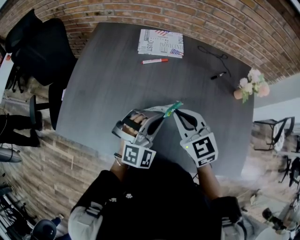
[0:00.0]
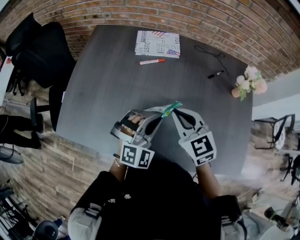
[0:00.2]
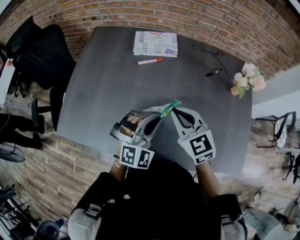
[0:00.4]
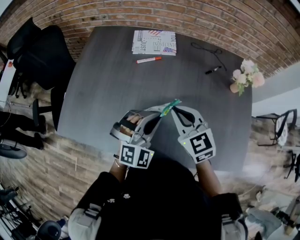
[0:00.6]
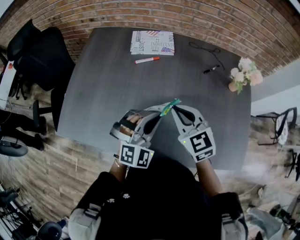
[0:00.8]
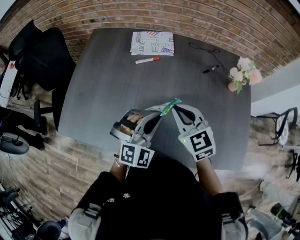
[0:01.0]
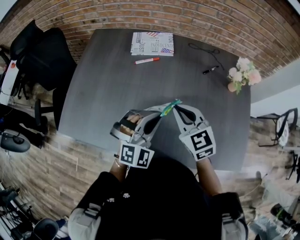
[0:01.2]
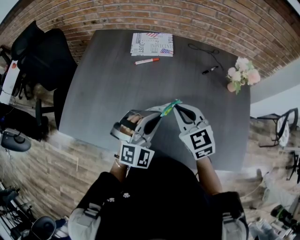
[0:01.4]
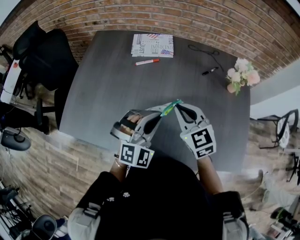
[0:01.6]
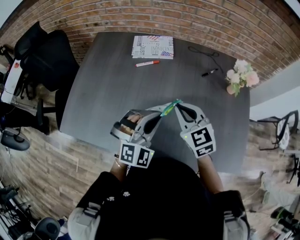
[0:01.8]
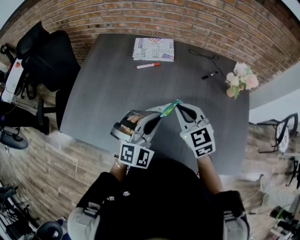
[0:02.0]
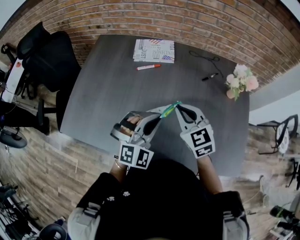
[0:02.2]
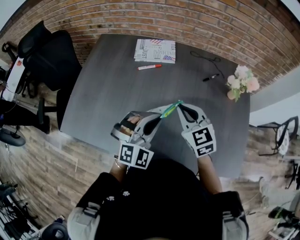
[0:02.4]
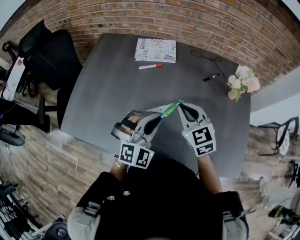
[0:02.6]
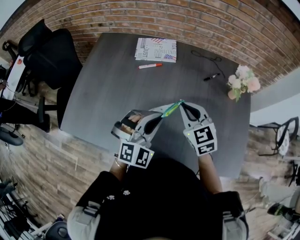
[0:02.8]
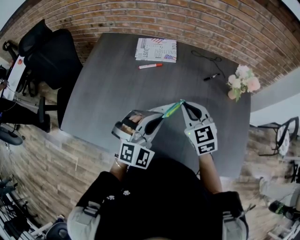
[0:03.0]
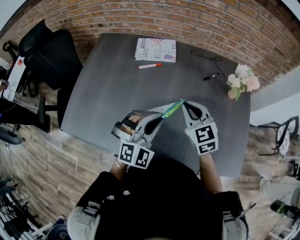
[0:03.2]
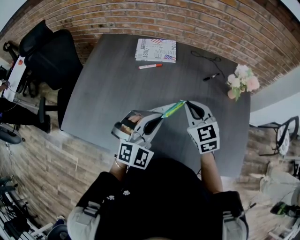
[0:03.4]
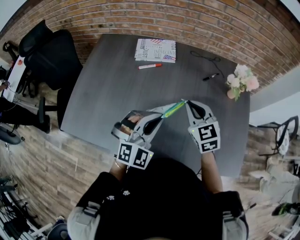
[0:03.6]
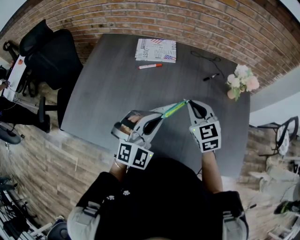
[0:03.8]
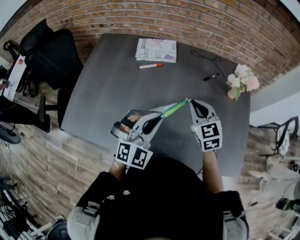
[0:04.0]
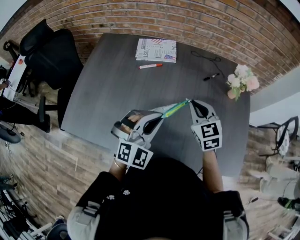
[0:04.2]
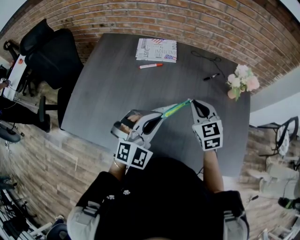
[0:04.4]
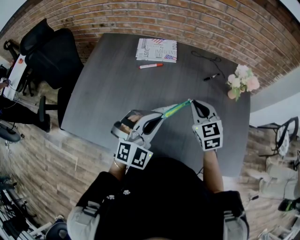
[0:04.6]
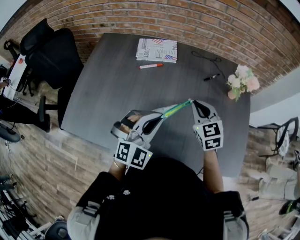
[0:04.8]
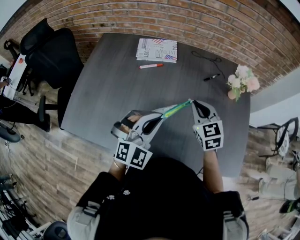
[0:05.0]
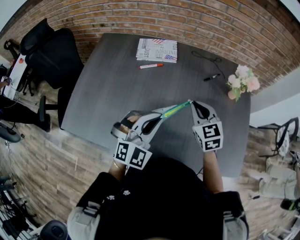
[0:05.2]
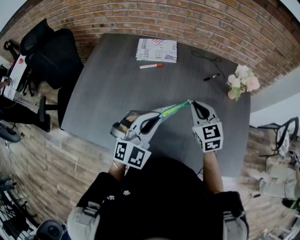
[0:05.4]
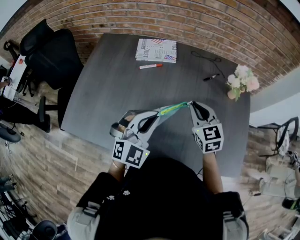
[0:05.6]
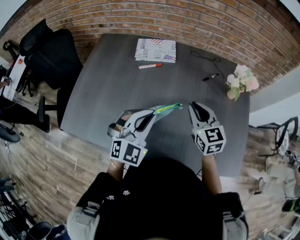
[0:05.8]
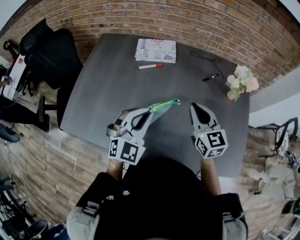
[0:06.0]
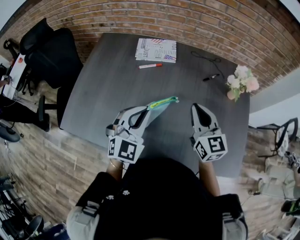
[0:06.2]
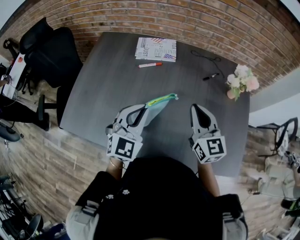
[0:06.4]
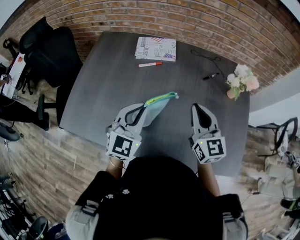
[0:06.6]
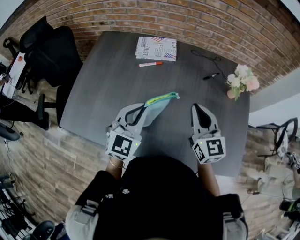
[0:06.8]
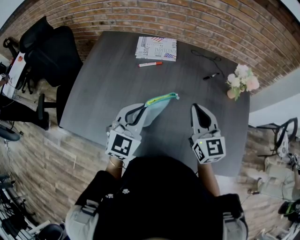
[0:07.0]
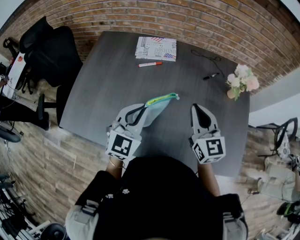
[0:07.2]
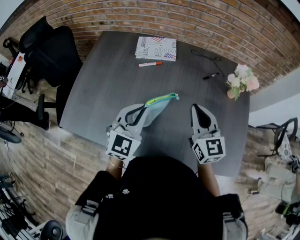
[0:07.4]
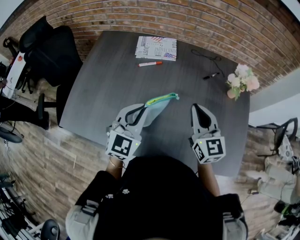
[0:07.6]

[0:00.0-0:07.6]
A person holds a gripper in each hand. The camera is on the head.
0:00.0 to 0:01.6: The right gripper goes approximately 5 cm to the right, while the left gripper ends up roughly 5 cm from where it was.
0:01.6 to 0:03.0: The grippers move only a little.
0:03.0 to 0:06.0: There are only small adjustments of the grippers.
0:06.0 to 0:07.6: The grippers move only a little.

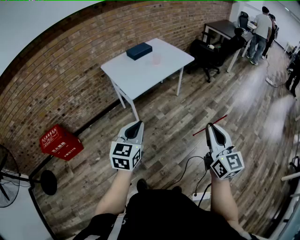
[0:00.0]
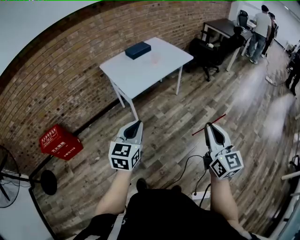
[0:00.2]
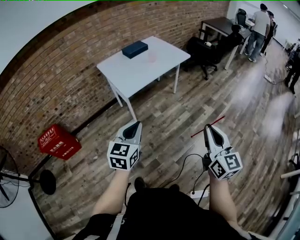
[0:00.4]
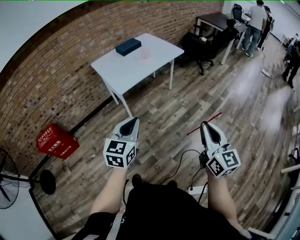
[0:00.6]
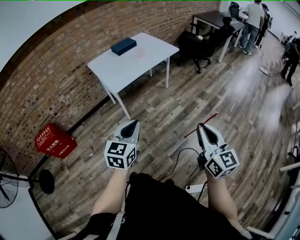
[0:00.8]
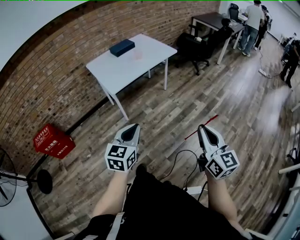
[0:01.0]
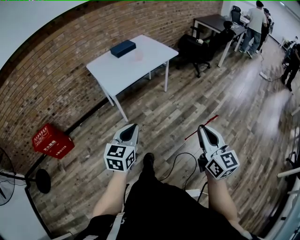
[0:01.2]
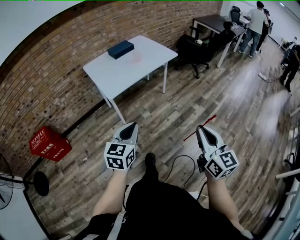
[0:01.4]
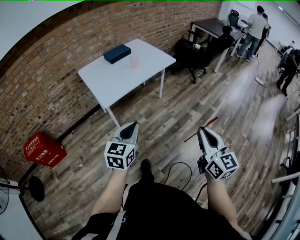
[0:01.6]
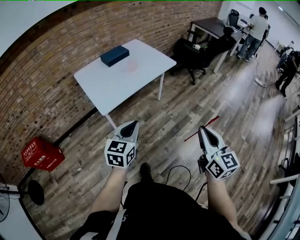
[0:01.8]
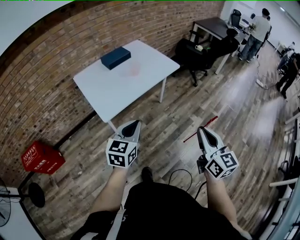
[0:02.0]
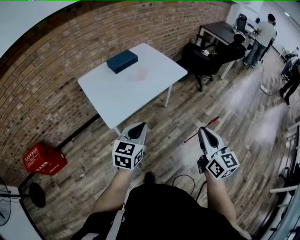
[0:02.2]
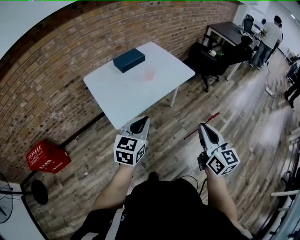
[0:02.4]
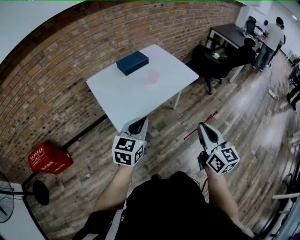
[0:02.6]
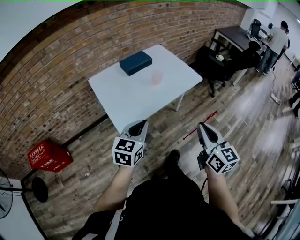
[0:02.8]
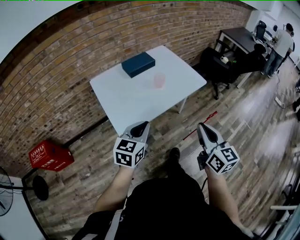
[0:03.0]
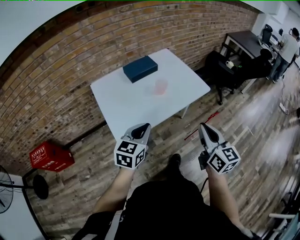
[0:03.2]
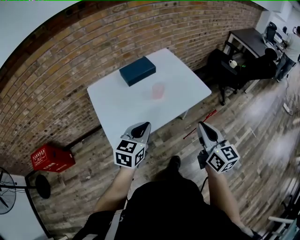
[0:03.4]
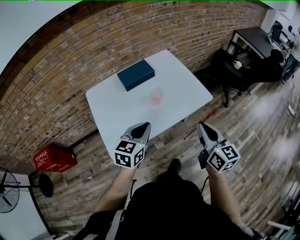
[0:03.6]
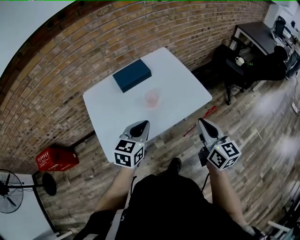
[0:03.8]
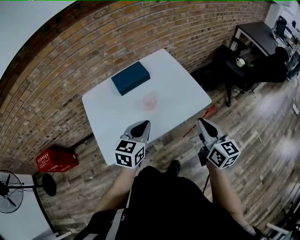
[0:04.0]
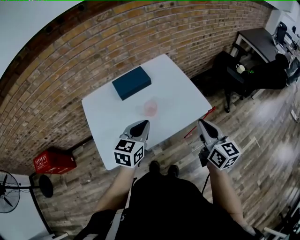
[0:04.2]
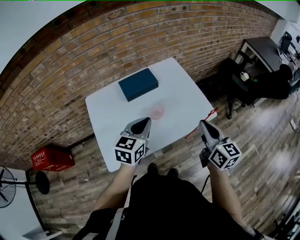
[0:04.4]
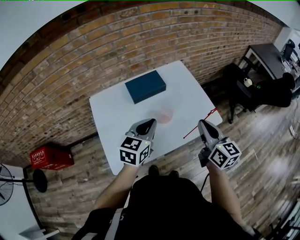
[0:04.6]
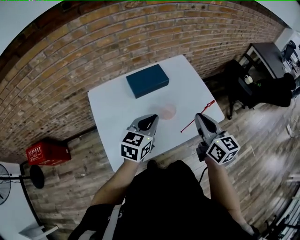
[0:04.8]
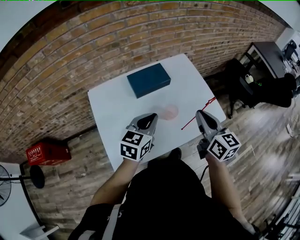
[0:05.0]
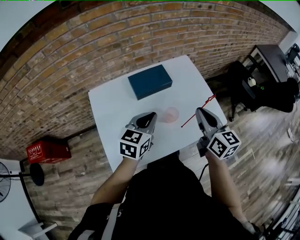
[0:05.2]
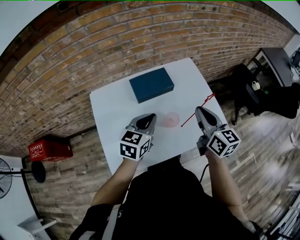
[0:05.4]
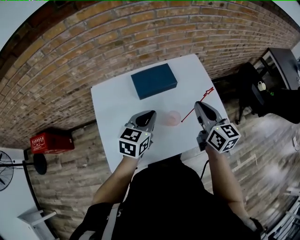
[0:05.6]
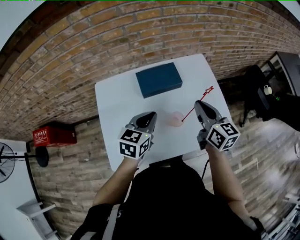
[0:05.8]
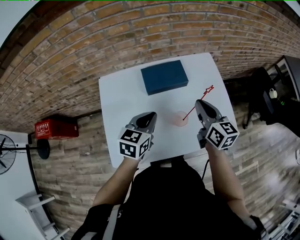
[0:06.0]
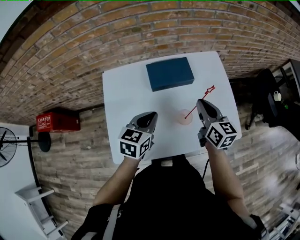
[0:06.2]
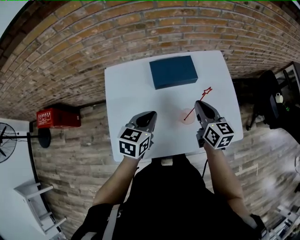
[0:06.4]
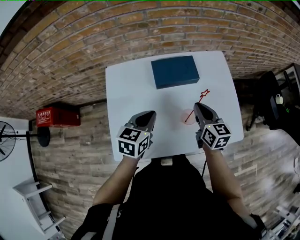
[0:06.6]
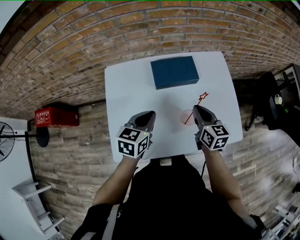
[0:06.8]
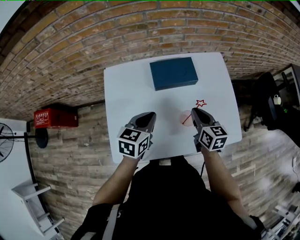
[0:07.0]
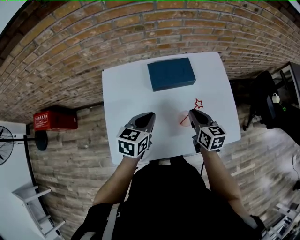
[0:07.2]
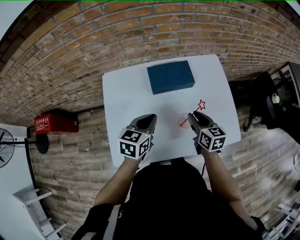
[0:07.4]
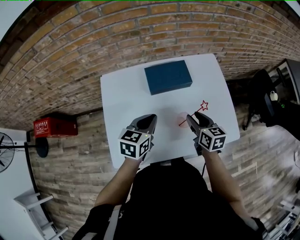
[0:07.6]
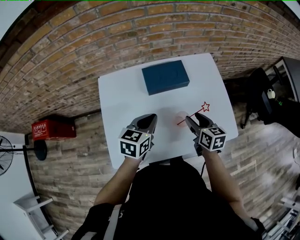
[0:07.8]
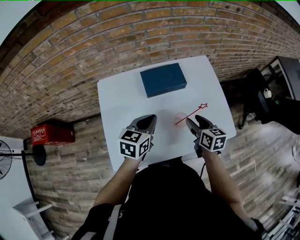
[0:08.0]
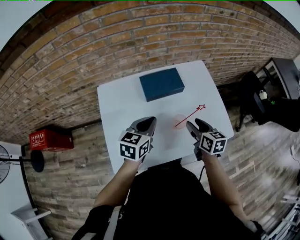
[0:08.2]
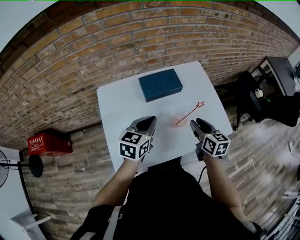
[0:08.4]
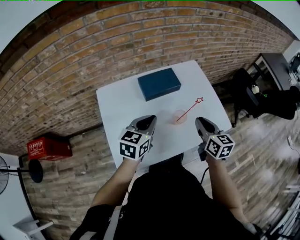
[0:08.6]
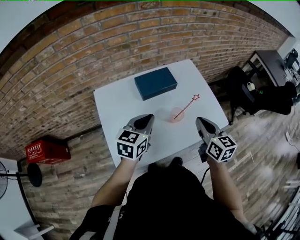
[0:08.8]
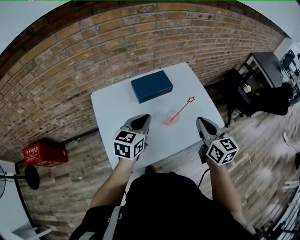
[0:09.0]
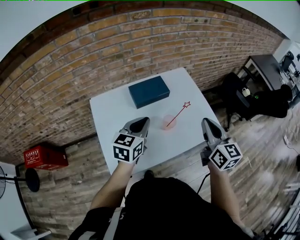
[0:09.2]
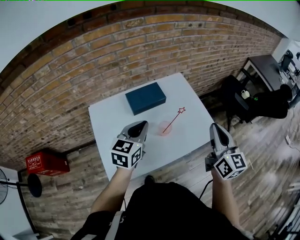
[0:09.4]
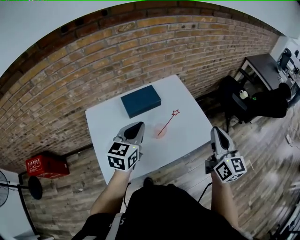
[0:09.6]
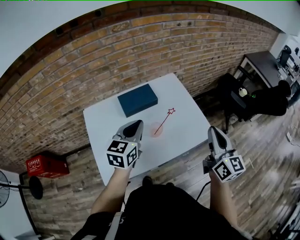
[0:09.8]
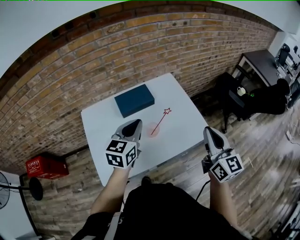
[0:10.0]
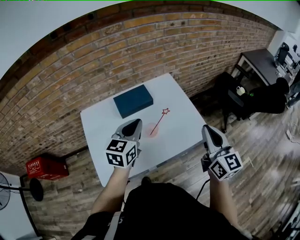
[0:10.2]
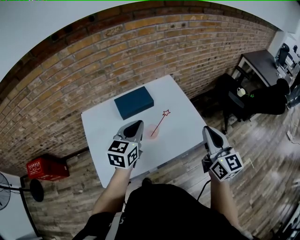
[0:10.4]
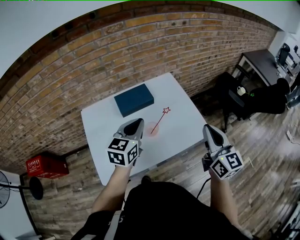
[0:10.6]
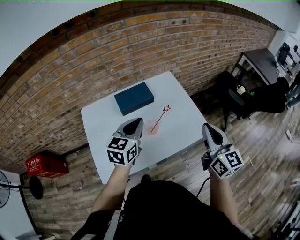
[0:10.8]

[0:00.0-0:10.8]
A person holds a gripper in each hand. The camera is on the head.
0:00.0 to 0:01.6: The grippers both shift to the right and forward by roughly 15 cm.
0:01.6 to 0:03.0: The right gripper moves forward and to the left, about 35 cm. Meanwhile the left gripper shifts approximately 30 cm forward.
0:03.0 to 0:04.6: The two grippers go some 30 cm forward.
0:04.6 to 0:06.2: The right gripper shifts about 20 cm forward, downward and to the left. The left gripper heads downward, forward and to the left, covering approximately 15 cm.
0:06.2 to 0:07.8: The right gripper is displaced downward by some 10 cm, and opens up.
0:07.8 to 0:09.2: The left gripper moves upward, approximately 10 cm, while the right gripper heads upward and backward, covering some 25 cm, swivels some 30 degrees, and closes its fingers.
0:09.2 to 0:10.8: Both grippers travel together to the right, approximately 10 cm.

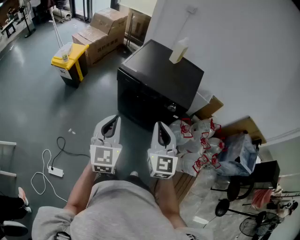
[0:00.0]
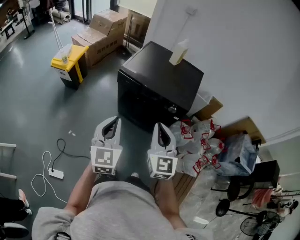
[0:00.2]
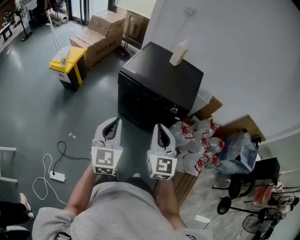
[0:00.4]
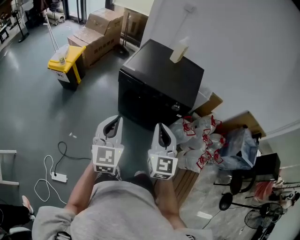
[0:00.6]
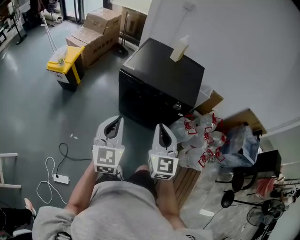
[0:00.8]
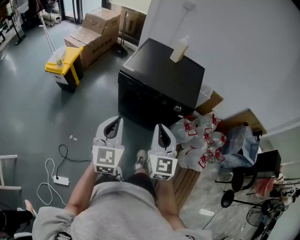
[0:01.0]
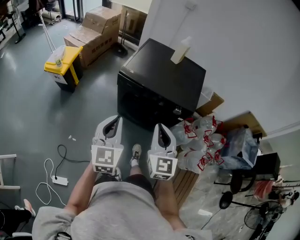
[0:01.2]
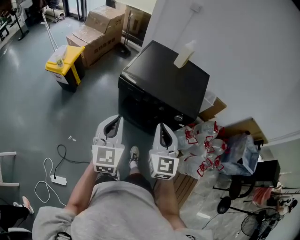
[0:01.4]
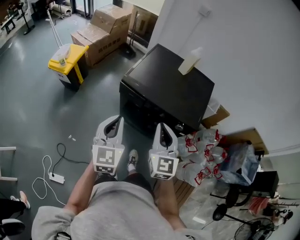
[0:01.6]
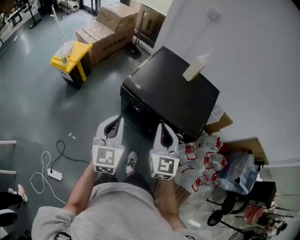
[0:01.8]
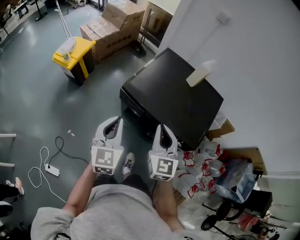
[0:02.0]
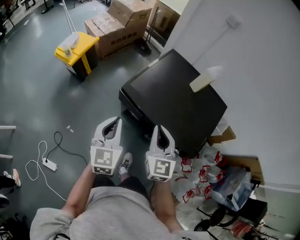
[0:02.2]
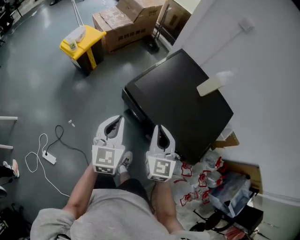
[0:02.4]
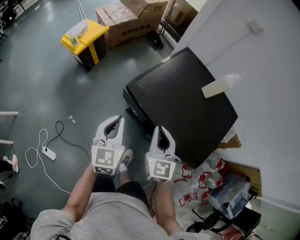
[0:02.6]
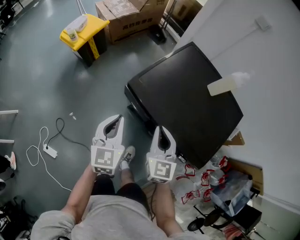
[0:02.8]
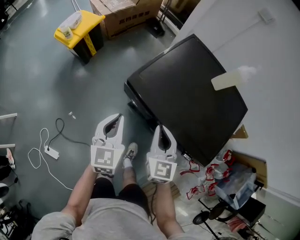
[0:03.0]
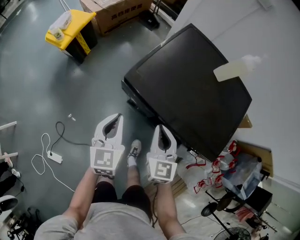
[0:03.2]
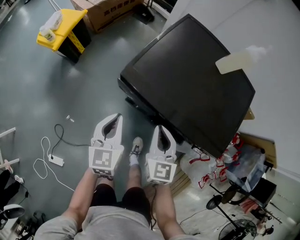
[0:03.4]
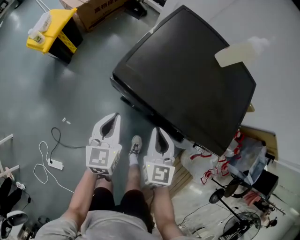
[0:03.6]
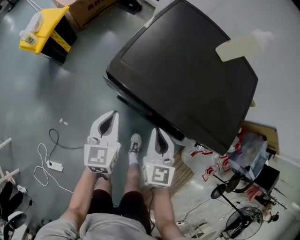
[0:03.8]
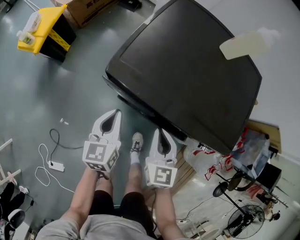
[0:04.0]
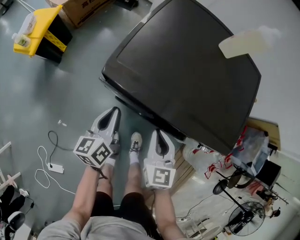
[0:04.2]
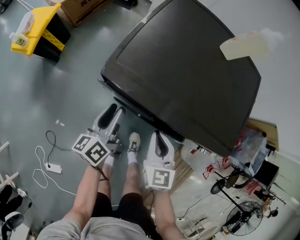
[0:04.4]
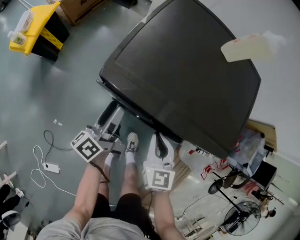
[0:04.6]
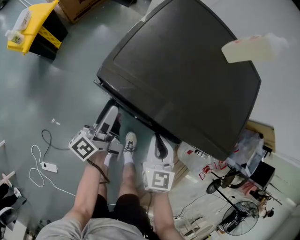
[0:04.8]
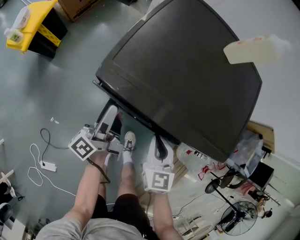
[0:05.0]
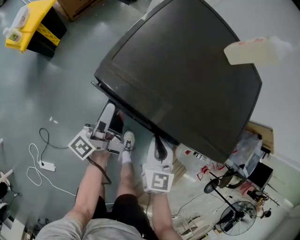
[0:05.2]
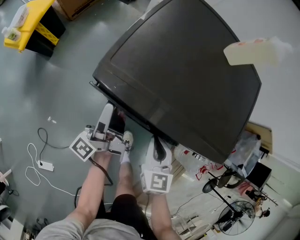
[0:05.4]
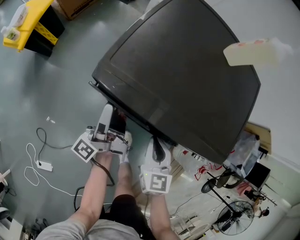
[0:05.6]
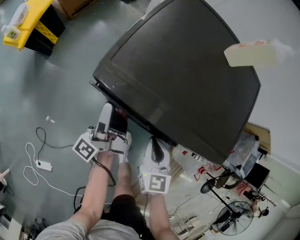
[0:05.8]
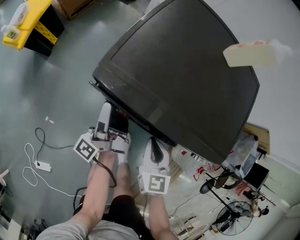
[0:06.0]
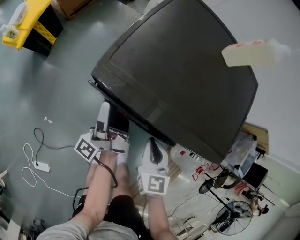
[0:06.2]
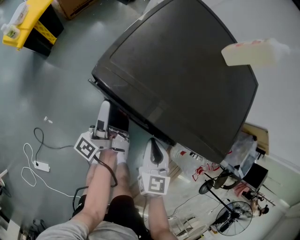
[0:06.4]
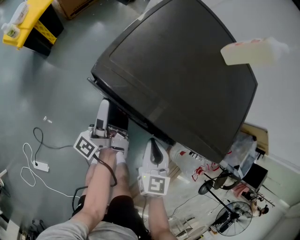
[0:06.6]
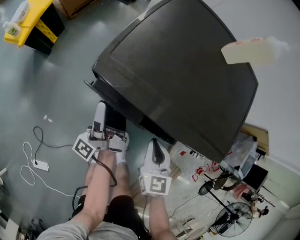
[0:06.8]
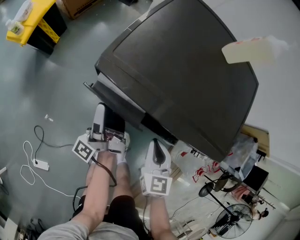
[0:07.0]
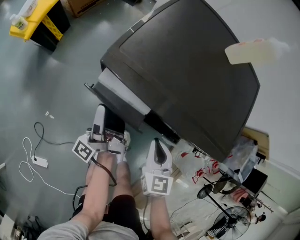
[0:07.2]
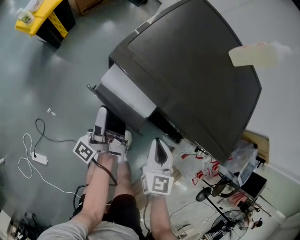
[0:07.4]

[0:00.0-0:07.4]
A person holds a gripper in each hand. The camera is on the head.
0:00.0 to 0:01.4: Both grippers move forward, some 10 cm.
0:01.4 to 0:03.0: The grippers both shift forward and downward by some 25 cm. The left gripper changes its angle by about 20 degrees.
0:03.0 to 0:04.4: The two grippers go roughly 15 cm downward. The left gripper rolls counterclockwise, seen from behind, by approximately 40 degrees, and opens its fingers.
0:04.4 to 0:06.0: The left gripper rotates around the line of its fingers by some 50 degrees, counterclockwise from behind, and opens up.
0:06.0 to 0:07.4: The left gripper goes approximately 5 cm backward.
